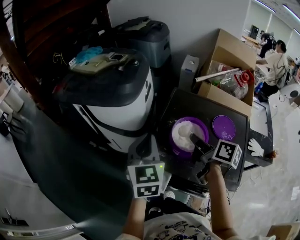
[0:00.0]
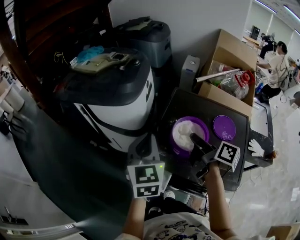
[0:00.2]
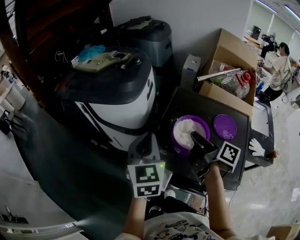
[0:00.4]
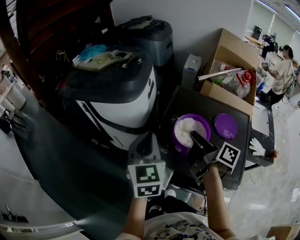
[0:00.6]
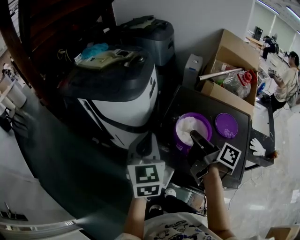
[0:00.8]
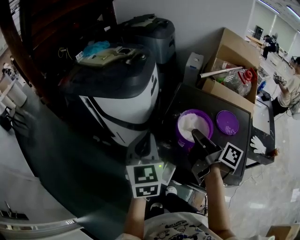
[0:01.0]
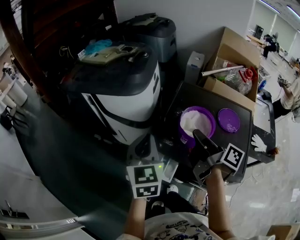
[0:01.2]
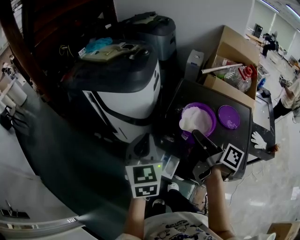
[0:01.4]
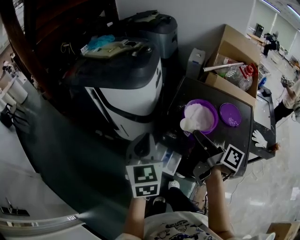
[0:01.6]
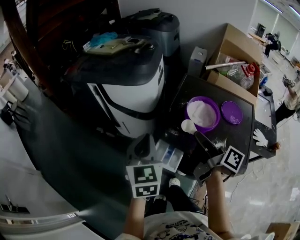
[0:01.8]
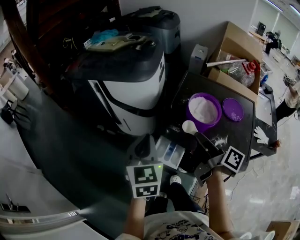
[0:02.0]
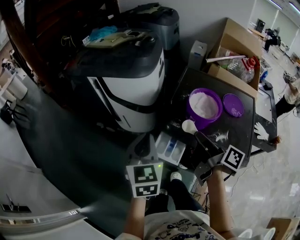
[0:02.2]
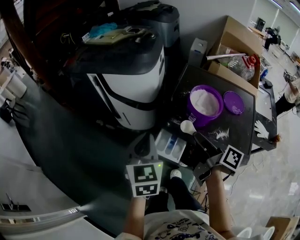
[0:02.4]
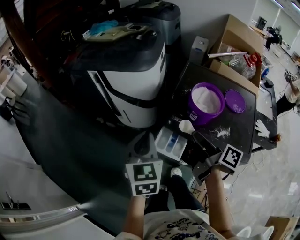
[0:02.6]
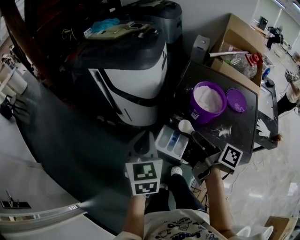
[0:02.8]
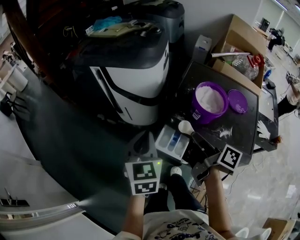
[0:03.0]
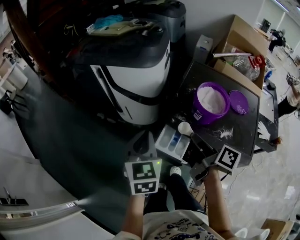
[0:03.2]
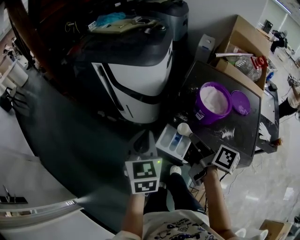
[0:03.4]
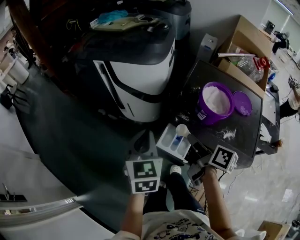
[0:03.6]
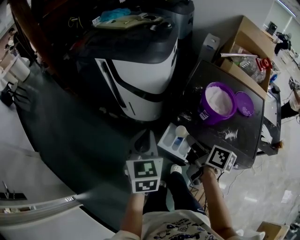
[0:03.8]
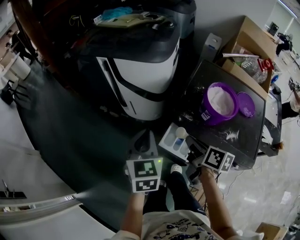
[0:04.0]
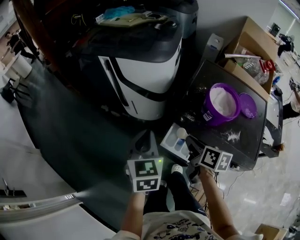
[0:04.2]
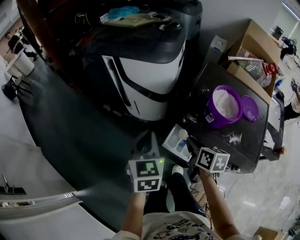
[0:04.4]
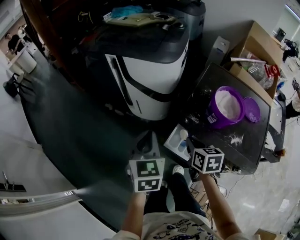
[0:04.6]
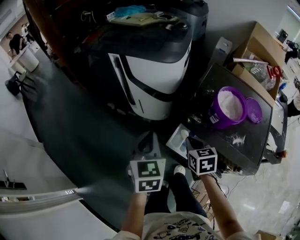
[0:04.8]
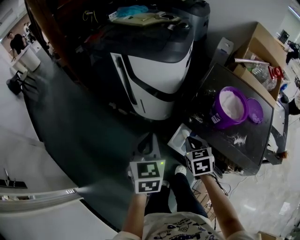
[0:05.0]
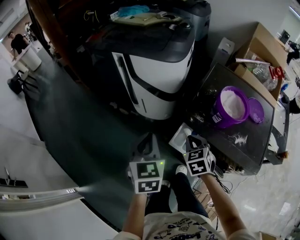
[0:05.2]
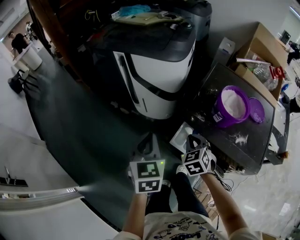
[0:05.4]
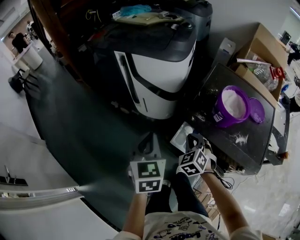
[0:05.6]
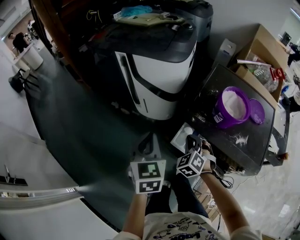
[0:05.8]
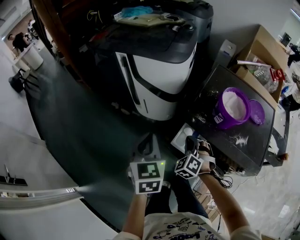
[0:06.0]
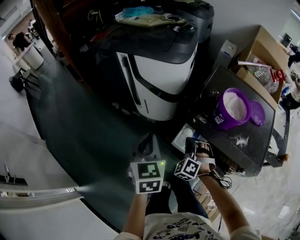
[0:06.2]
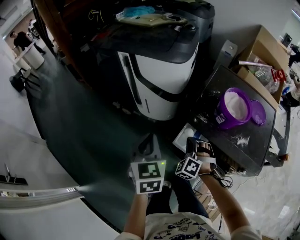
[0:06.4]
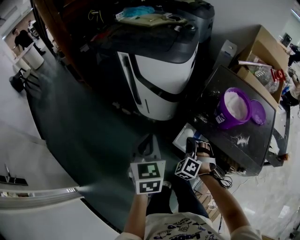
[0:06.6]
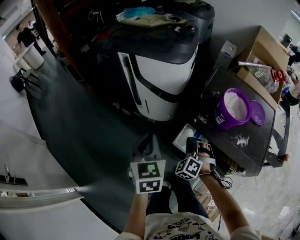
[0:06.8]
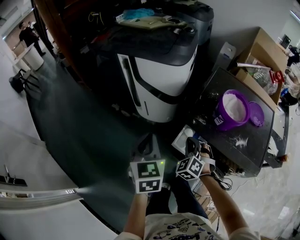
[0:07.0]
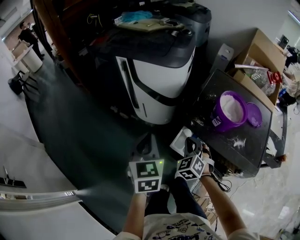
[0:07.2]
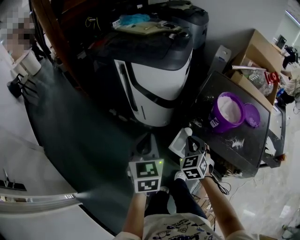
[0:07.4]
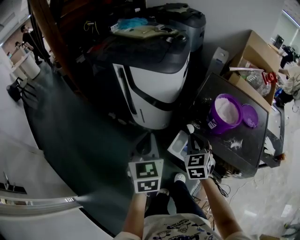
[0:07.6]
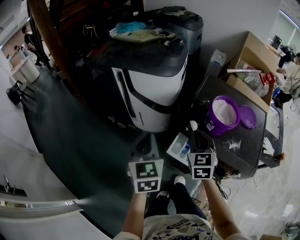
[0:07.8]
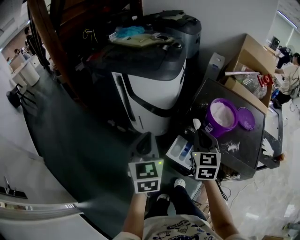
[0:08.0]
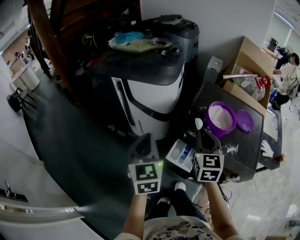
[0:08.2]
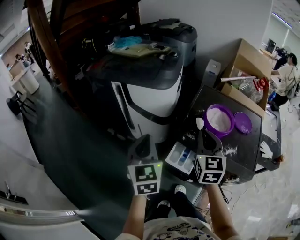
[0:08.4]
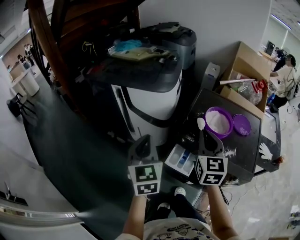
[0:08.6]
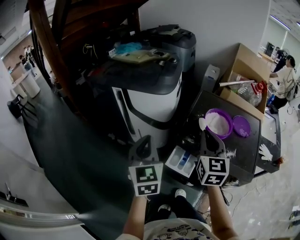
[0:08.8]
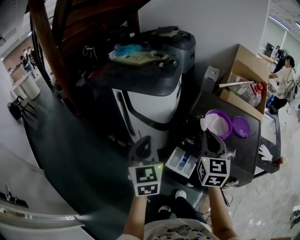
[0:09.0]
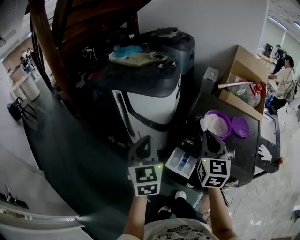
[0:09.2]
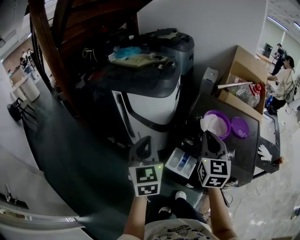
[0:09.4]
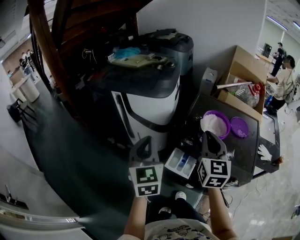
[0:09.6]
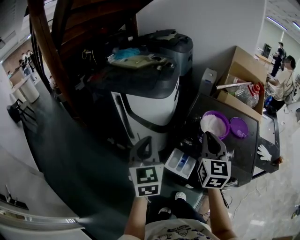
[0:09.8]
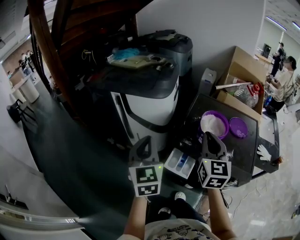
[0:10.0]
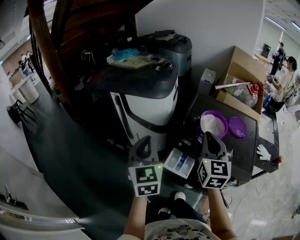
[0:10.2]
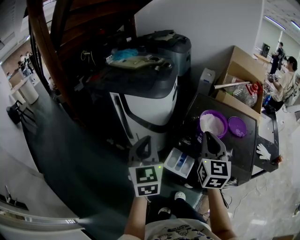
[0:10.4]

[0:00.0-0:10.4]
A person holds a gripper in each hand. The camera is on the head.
0:00.0 to 0:01.4: The right gripper moves backward and to the left, approximately 10 cm, and swivels about 20 degrees; the left gripper heads to the left and backward, covering some 10 cm.
0:01.4 to 0:03.0: The right gripper moves downward, to the left and backward, some 10 cm, while the left gripper travels to the left, backward and downward by approximately 10 cm.
0:03.0 to 0:04.4: The right gripper shifts approximately 10 cm downward, and turns by some 50 degrees; the left gripper moves some 5 cm.
0:04.4 to 0:06.0: The right gripper travels downward by some 5 cm, and twists about 90 degrees counterclockwise, seen from behind.
0:06.0 to 0:07.4: The right gripper shifts approximately 5 cm upward, and rotates some 30 degrees.
0:07.4 to 0:09.0: The right gripper travels upward by approximately 20 cm, and turns by about 40 degrees. Meanwhile the left gripper travels upward by roughly 10 cm.
0:09.0 to 0:10.4: The grippers stay close to where they were, moving slightly.

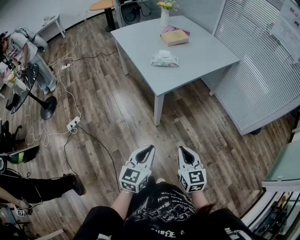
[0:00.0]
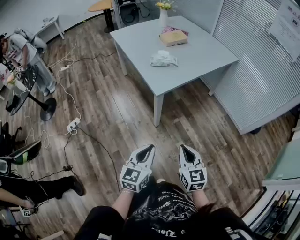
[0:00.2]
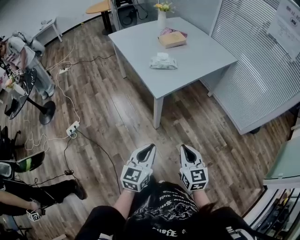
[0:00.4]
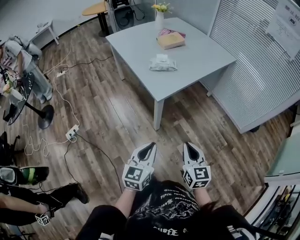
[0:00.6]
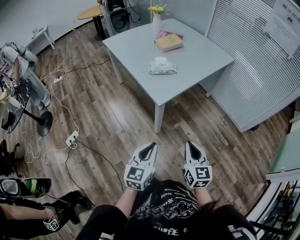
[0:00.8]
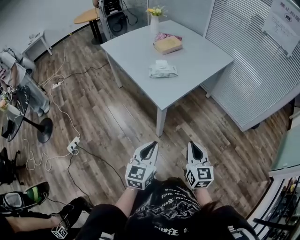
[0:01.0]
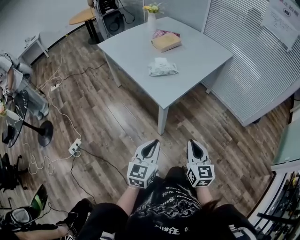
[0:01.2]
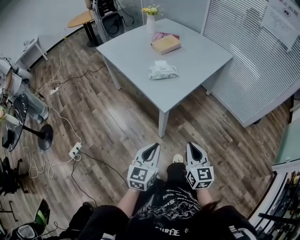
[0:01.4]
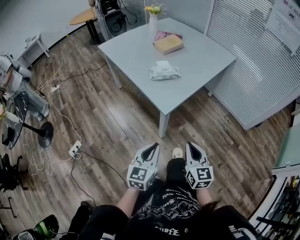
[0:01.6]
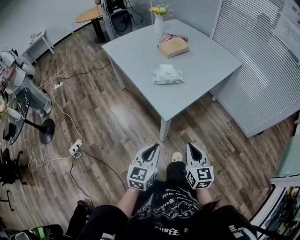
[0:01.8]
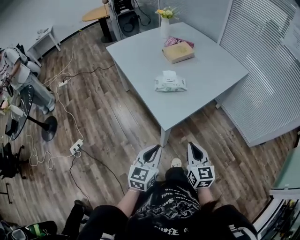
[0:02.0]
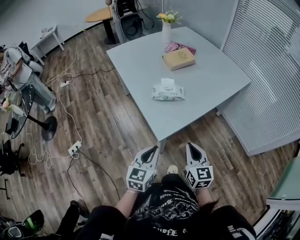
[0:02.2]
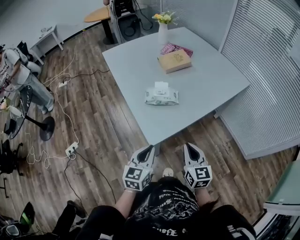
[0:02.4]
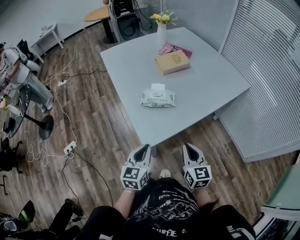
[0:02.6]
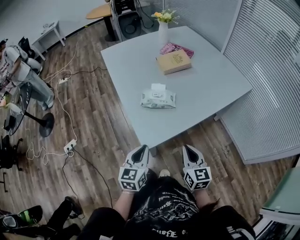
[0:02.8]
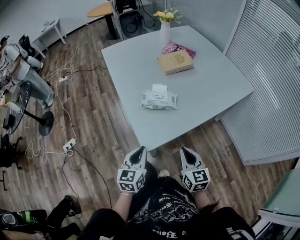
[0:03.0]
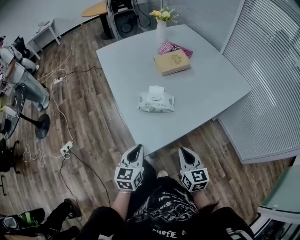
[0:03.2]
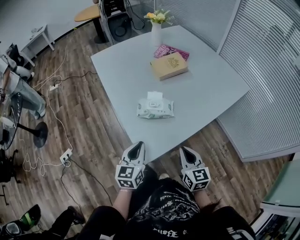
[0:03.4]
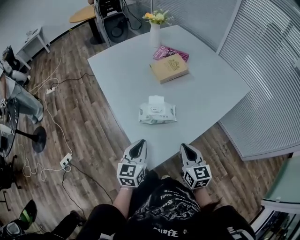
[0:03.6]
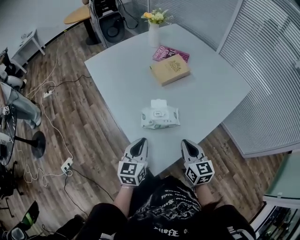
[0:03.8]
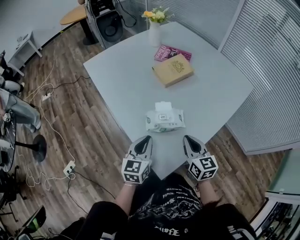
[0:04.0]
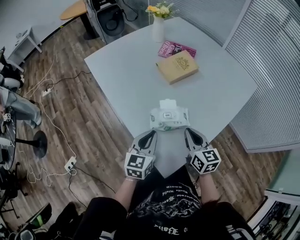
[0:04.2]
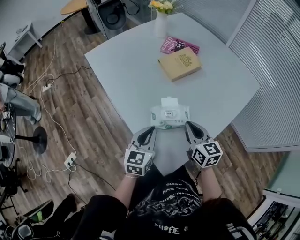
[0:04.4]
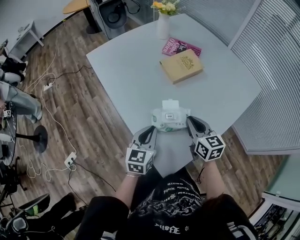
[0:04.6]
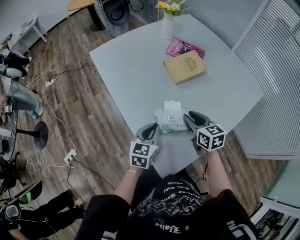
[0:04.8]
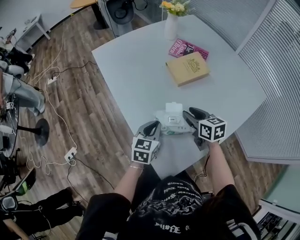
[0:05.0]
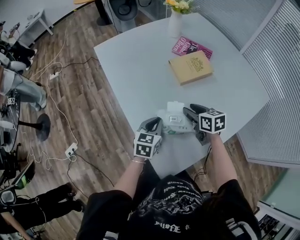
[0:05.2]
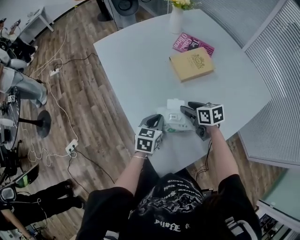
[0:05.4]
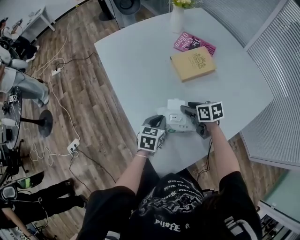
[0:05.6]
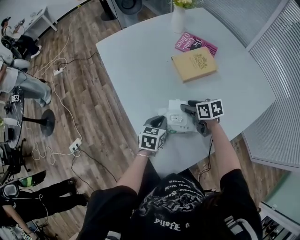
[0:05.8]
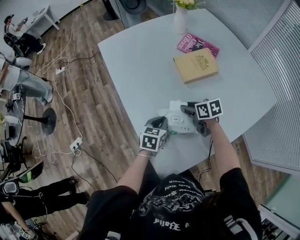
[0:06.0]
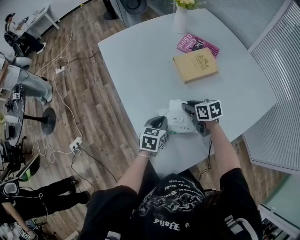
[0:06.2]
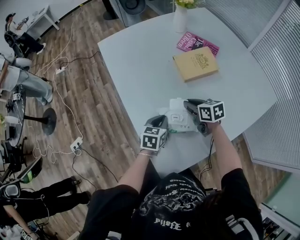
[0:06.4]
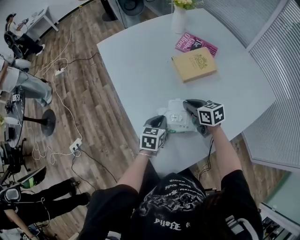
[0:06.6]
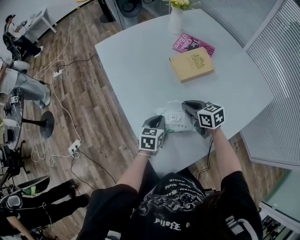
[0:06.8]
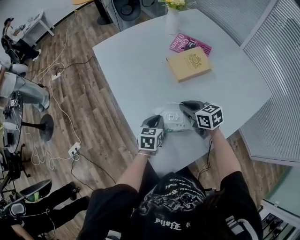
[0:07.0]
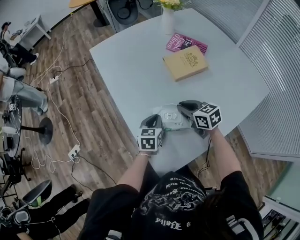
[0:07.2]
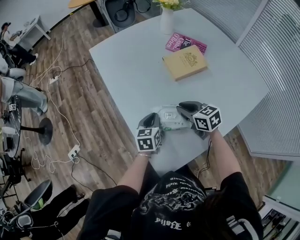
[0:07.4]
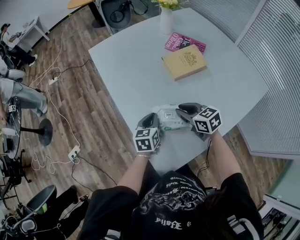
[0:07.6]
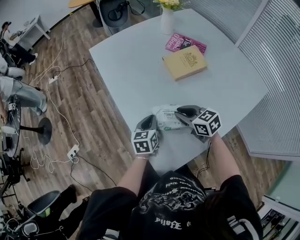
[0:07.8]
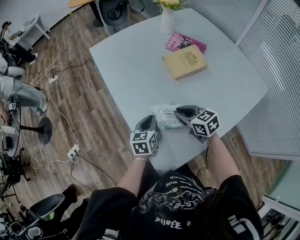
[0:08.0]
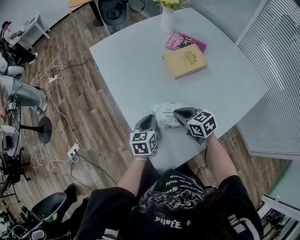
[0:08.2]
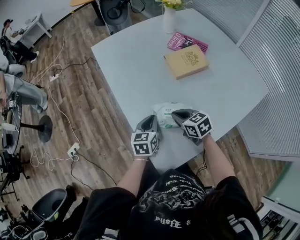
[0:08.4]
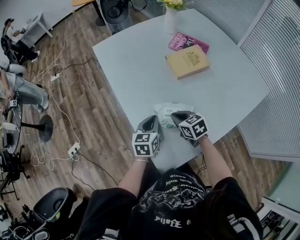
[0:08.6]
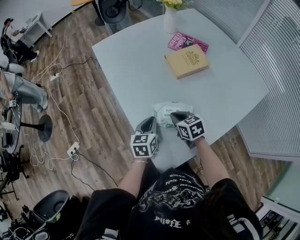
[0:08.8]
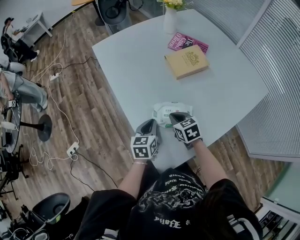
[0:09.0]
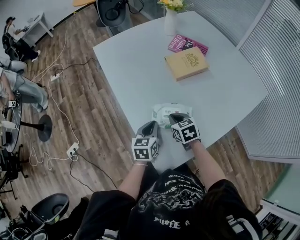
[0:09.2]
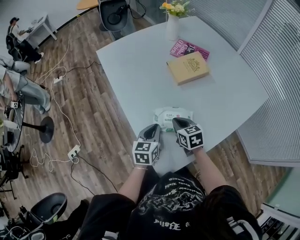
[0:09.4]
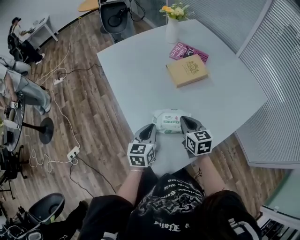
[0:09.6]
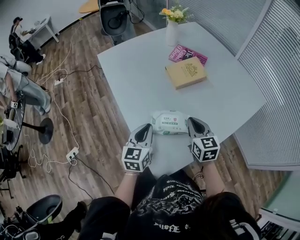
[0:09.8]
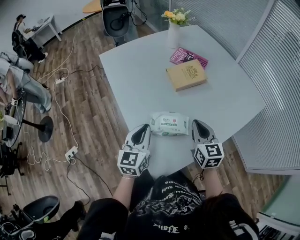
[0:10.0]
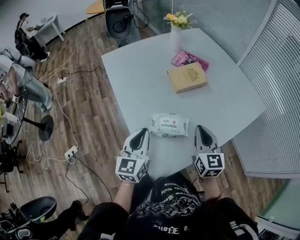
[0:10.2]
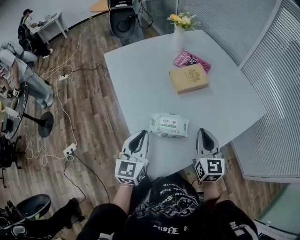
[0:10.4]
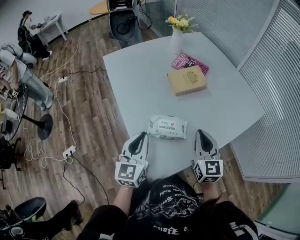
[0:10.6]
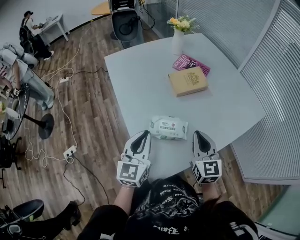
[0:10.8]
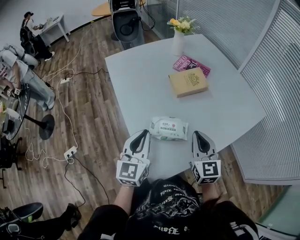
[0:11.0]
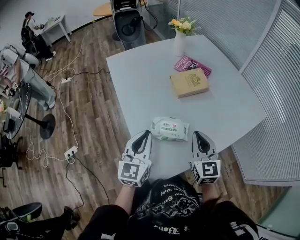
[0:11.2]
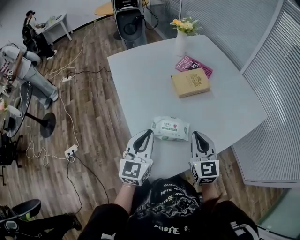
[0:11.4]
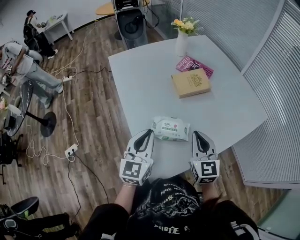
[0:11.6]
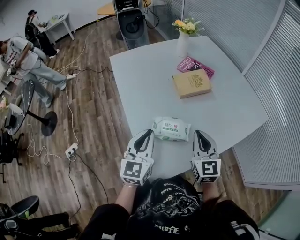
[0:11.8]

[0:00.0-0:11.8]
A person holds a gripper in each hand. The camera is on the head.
0:00.0 to 0:01.4: Both grippers move forward and to the left, about 15 cm.
0:01.4 to 0:03.0: Both grippers move forward, some 25 cm. The left gripper rotates approximately 20 degrees; the right gripper swivels some 20 degrees.
0:03.0 to 0:04.4: The grippers both shift forward by roughly 25 cm.
0:04.4 to 0:06.0: The left gripper travels downward and forward by roughly 15 cm, and changes its angle by approximately 20 degrees, while the right gripper moves forward and downward, about 20 cm, rotates roughly 40 degrees, and opens up.
0:06.0 to 0:07.4: The right gripper goes some 5 cm upward, changes its angle by approximately 20 degrees, and closes up.
0:07.4 to 0:08.8: The right gripper is displaced to the left by some 5 cm.
0:08.8 to 0:10.4: The right gripper heads upward and to the right, covering approximately 20 cm, and changes its angle by roughly 40 degrees; the left gripper goes some 15 cm upward and backward, and swivels approximately 20 degrees.
0:10.4 to 0:11.8: The grippers make only small movements.

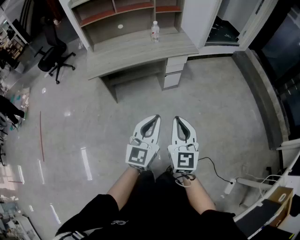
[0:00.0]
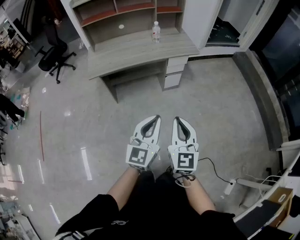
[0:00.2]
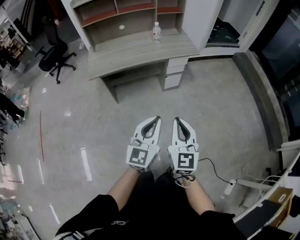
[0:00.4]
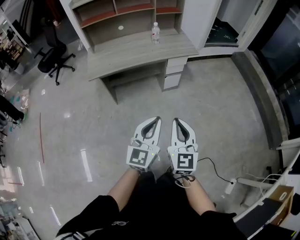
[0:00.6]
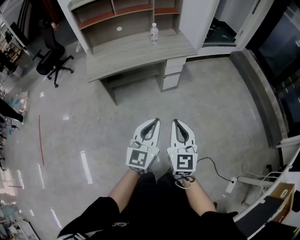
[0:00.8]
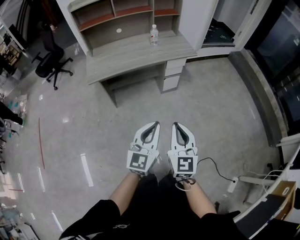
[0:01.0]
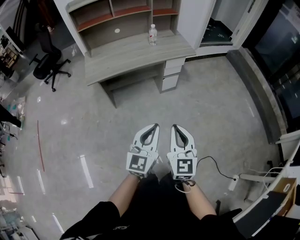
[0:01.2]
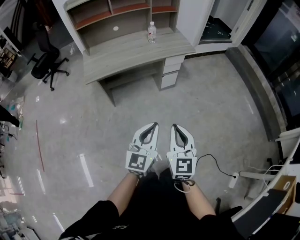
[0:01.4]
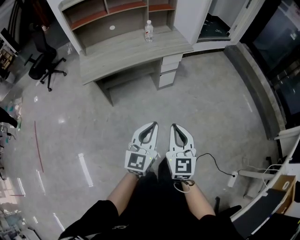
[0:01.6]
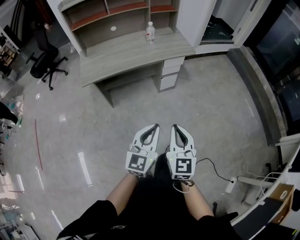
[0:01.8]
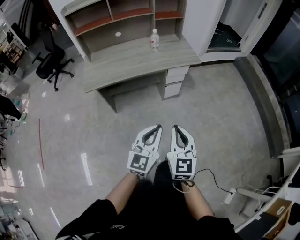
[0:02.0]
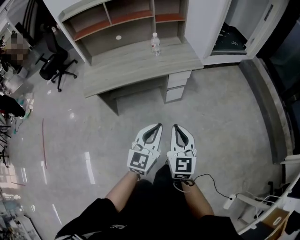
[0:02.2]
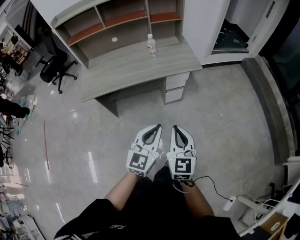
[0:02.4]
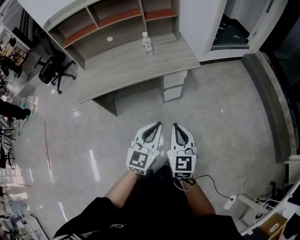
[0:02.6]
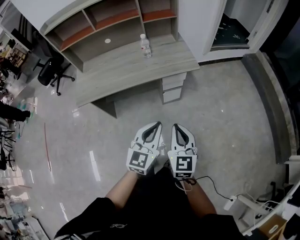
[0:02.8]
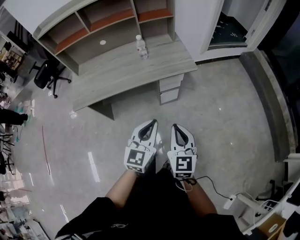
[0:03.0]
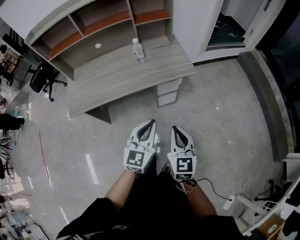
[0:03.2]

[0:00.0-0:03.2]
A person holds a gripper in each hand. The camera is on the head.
0:00.0 to 0:01.6: The left gripper changes place by about 5 cm. The right gripper ends up some 5 cm from where it was.
0:01.6 to 0:03.2: The grippers both shift forward by about 35 cm.
